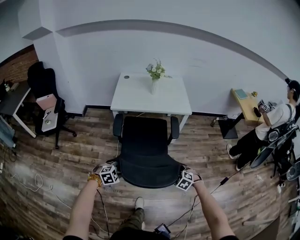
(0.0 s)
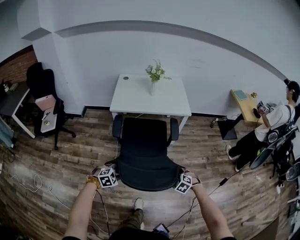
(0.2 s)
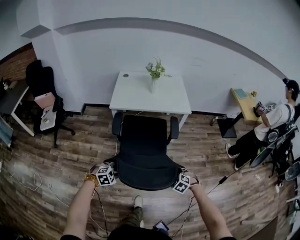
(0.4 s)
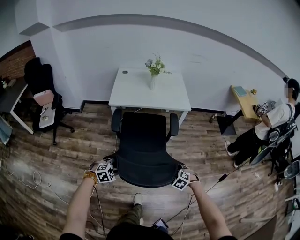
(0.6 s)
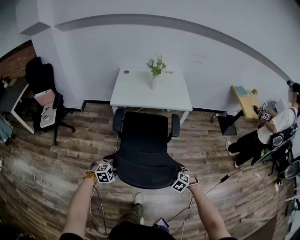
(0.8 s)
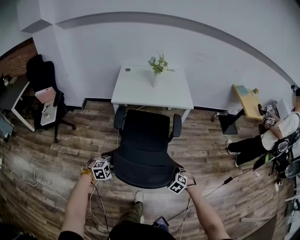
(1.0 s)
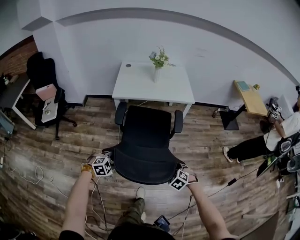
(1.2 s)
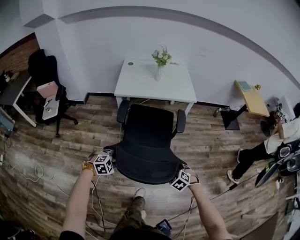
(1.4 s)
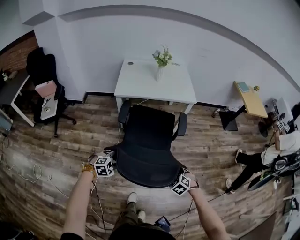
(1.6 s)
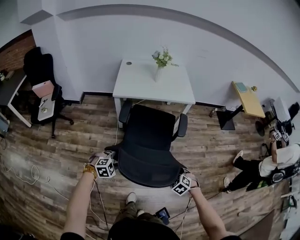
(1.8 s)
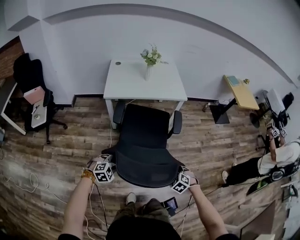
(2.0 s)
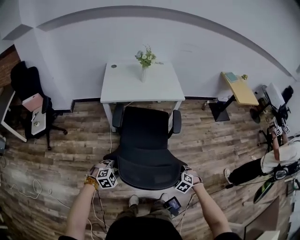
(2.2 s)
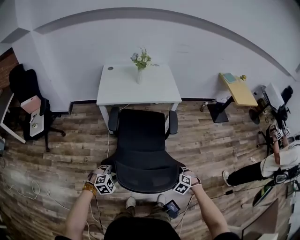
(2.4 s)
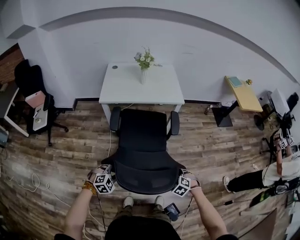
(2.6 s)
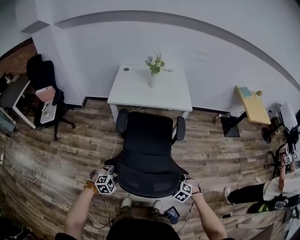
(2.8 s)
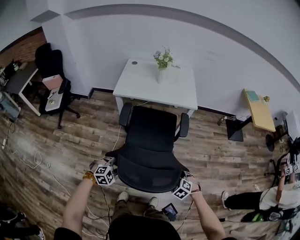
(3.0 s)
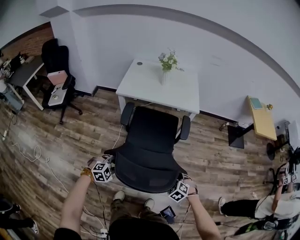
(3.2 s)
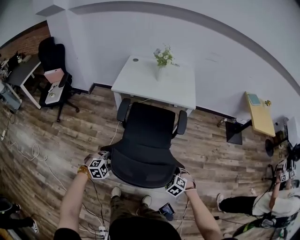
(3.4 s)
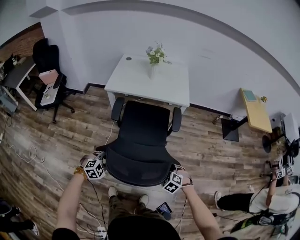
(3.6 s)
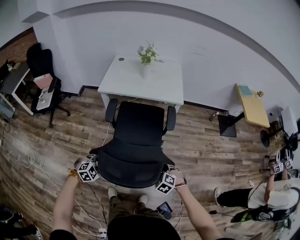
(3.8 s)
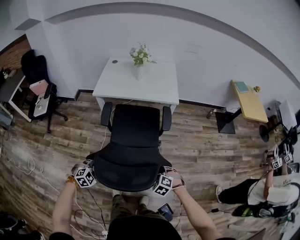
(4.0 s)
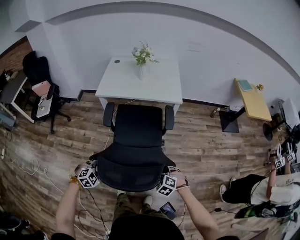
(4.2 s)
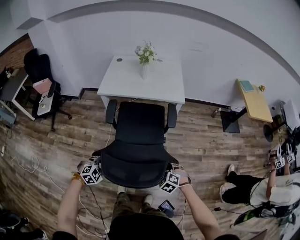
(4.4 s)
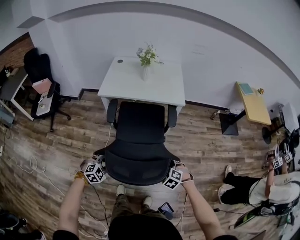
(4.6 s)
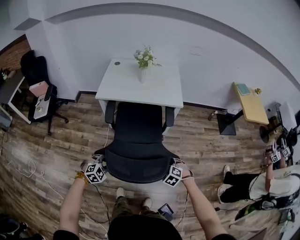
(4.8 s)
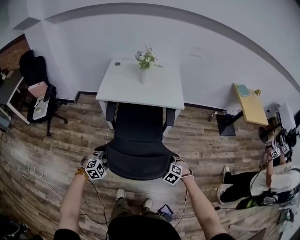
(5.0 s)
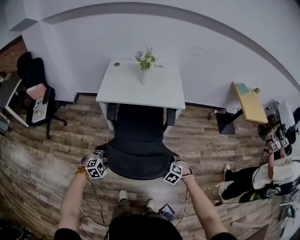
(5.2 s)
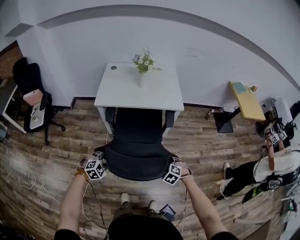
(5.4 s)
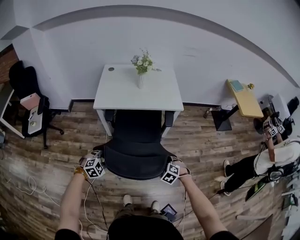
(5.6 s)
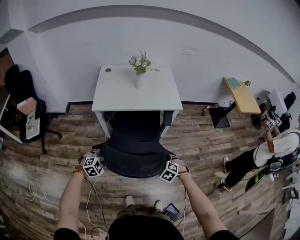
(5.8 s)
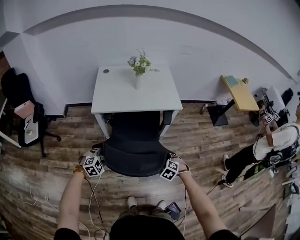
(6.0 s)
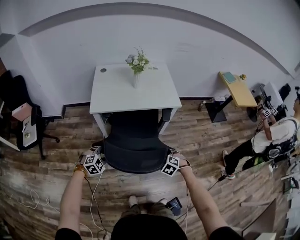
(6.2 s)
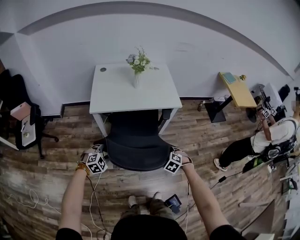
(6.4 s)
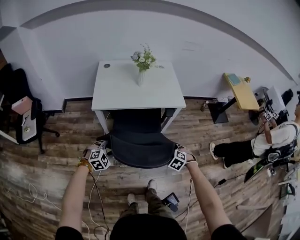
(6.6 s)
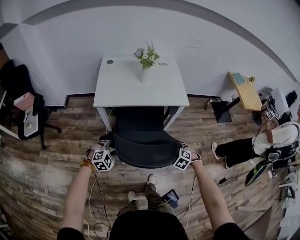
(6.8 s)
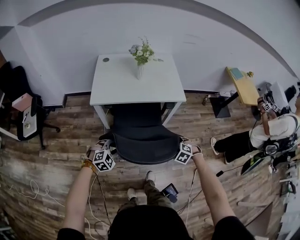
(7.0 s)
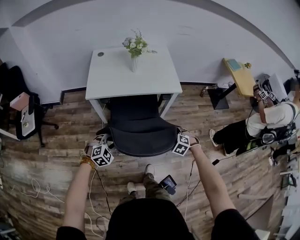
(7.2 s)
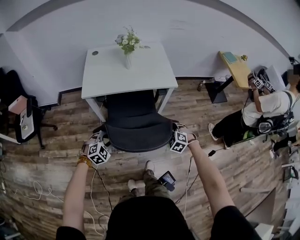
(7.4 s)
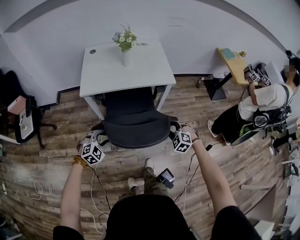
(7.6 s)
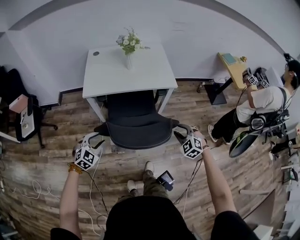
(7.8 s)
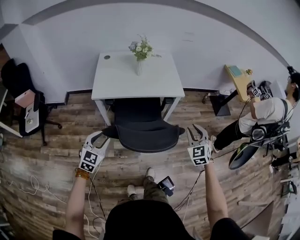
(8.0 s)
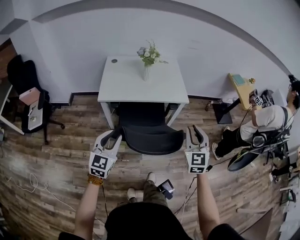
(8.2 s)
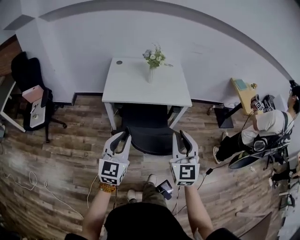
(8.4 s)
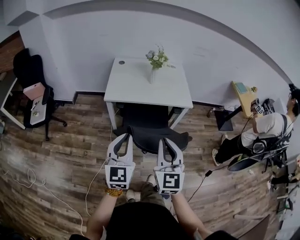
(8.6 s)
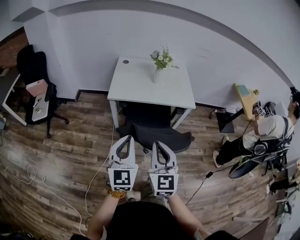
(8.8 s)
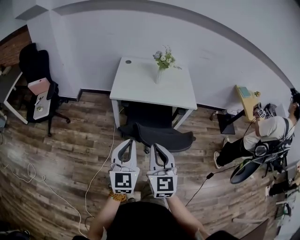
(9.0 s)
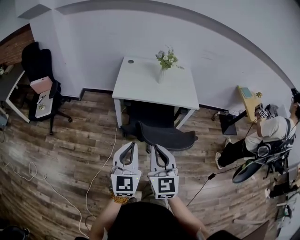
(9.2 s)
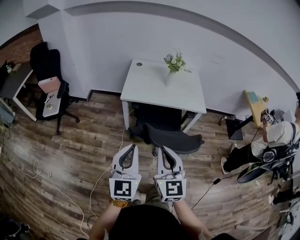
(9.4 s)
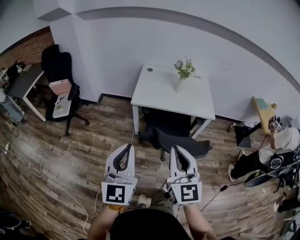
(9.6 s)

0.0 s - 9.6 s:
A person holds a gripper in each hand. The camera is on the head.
0.0 s - 1.6 s: The right gripper travels backward by approximately 10 cm, while the left gripper moves about 5 cm.
1.6 s - 3.2 s: The right gripper travels to the right and forward by approximately 15 cm; the left gripper goes approximately 10 cm to the right.
3.2 s - 4.8 s: Both grippers move forward, about 10 cm.
4.8 s - 6.4 s: The two grippers go about 20 cm to the left and forward.
6.4 s - 8.0 s: The right gripper shifts roughly 20 cm upward and to the right, and tilts its fingers some 40 degrees upward. The left gripper goes approximately 15 cm upward, and turns by some 40 degrees.
8.0 s - 9.6 s: The left gripper goes some 25 cm upward and backward, points its fingers about 30 degrees further upward, and closes up. Meanwhile the right gripper moves to the left, upward and backward, about 35 cm, changes its angle by some 40 degrees, and closes its fingers.

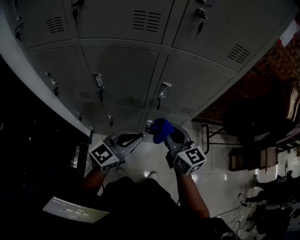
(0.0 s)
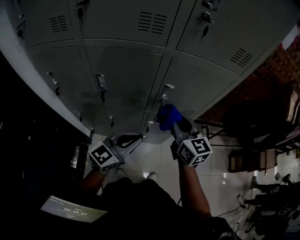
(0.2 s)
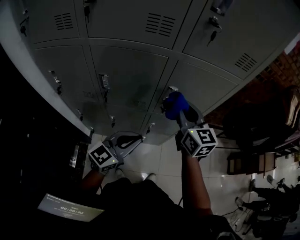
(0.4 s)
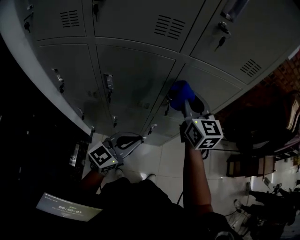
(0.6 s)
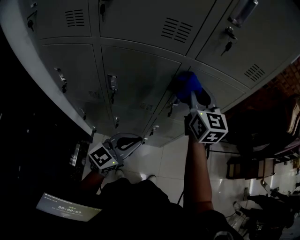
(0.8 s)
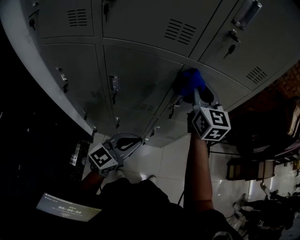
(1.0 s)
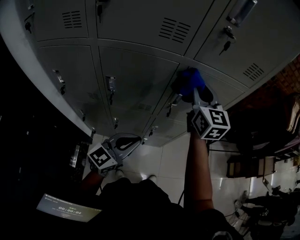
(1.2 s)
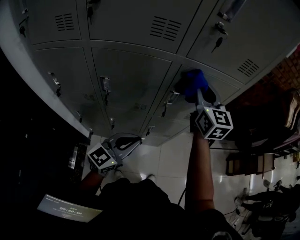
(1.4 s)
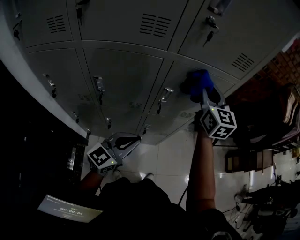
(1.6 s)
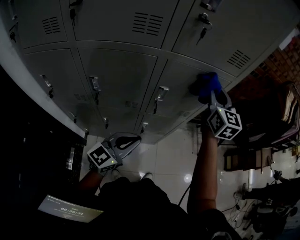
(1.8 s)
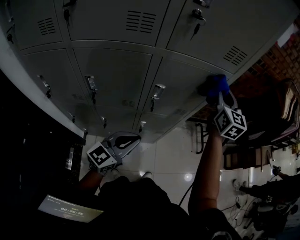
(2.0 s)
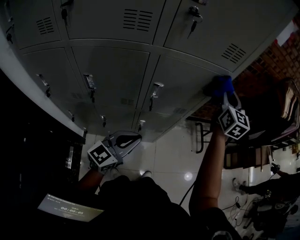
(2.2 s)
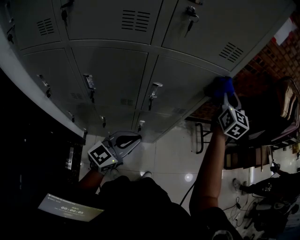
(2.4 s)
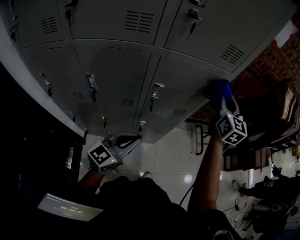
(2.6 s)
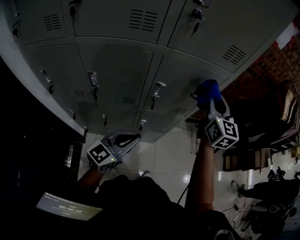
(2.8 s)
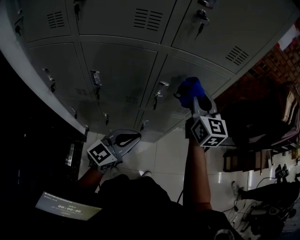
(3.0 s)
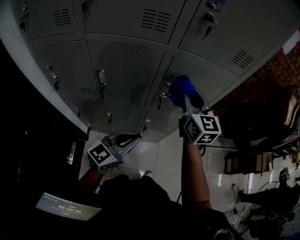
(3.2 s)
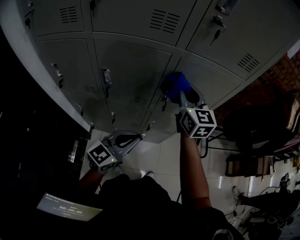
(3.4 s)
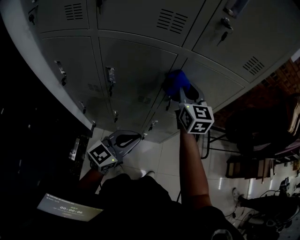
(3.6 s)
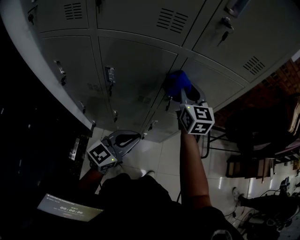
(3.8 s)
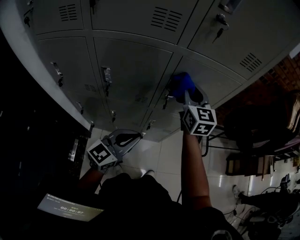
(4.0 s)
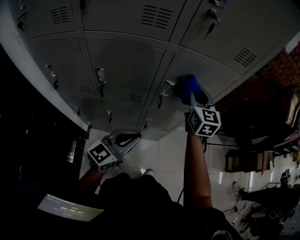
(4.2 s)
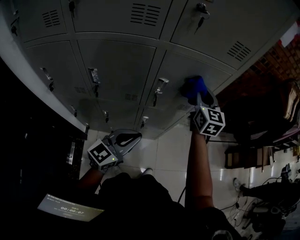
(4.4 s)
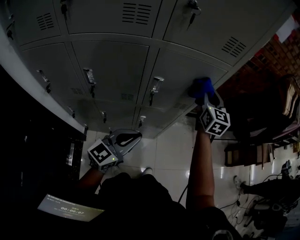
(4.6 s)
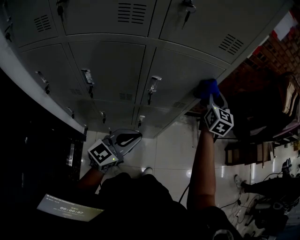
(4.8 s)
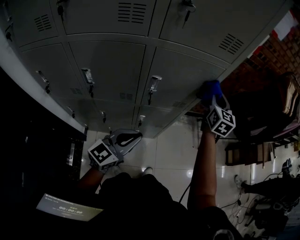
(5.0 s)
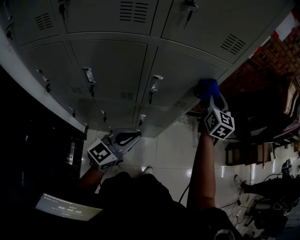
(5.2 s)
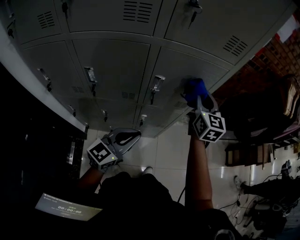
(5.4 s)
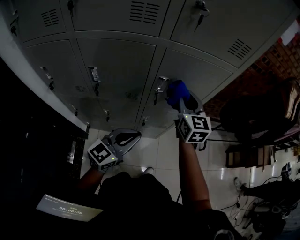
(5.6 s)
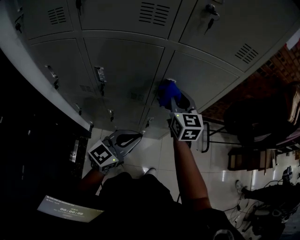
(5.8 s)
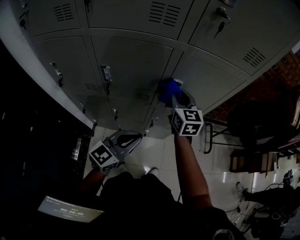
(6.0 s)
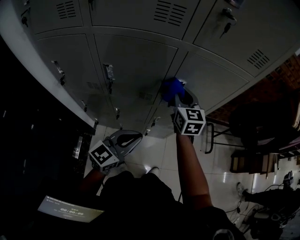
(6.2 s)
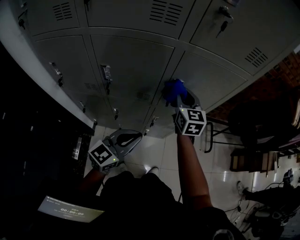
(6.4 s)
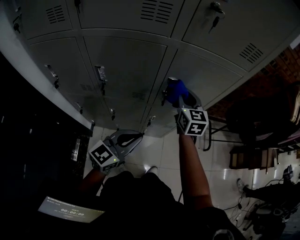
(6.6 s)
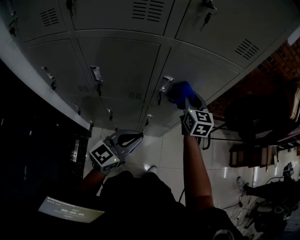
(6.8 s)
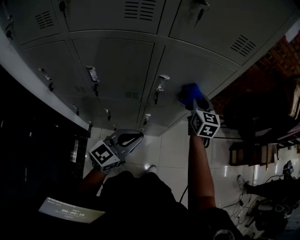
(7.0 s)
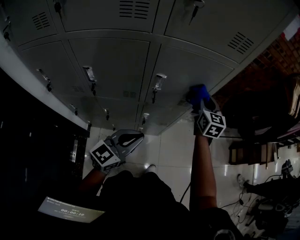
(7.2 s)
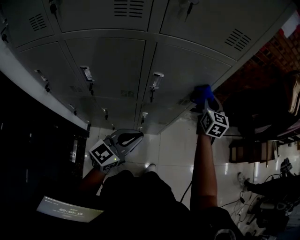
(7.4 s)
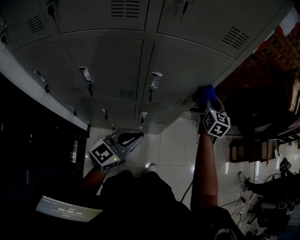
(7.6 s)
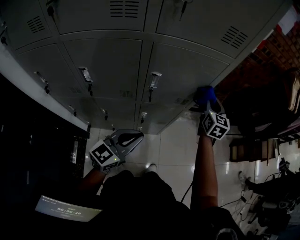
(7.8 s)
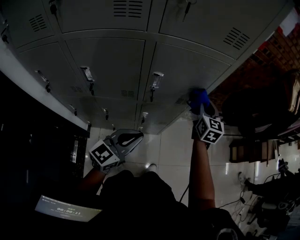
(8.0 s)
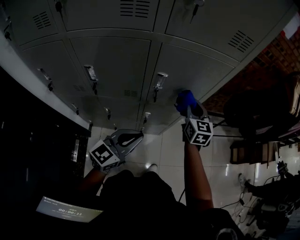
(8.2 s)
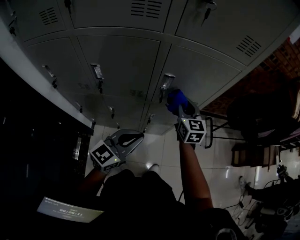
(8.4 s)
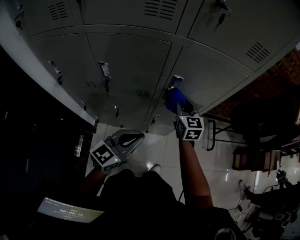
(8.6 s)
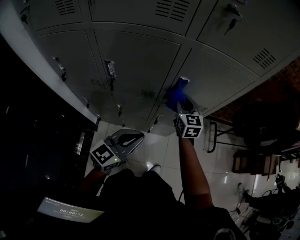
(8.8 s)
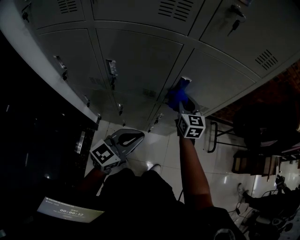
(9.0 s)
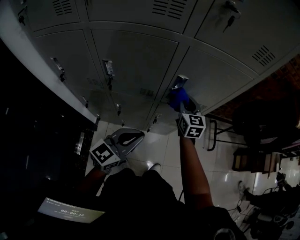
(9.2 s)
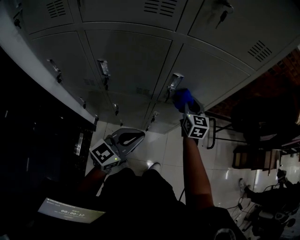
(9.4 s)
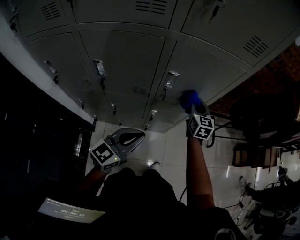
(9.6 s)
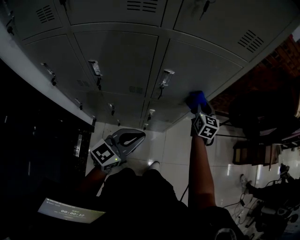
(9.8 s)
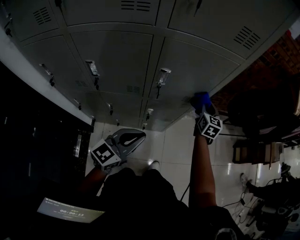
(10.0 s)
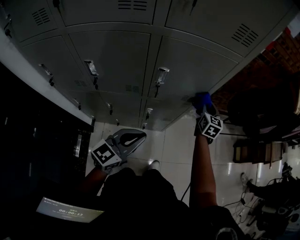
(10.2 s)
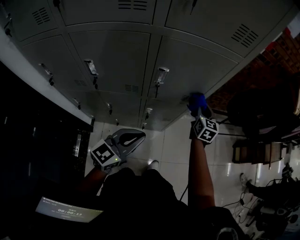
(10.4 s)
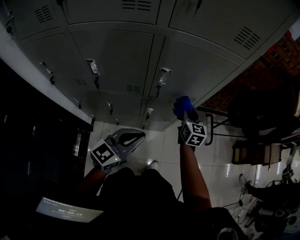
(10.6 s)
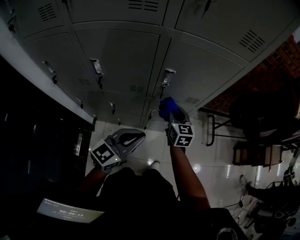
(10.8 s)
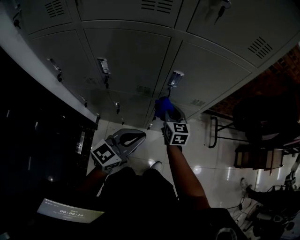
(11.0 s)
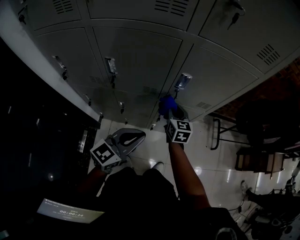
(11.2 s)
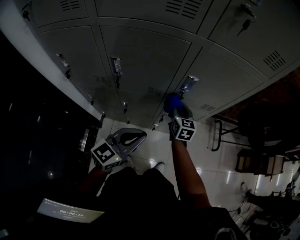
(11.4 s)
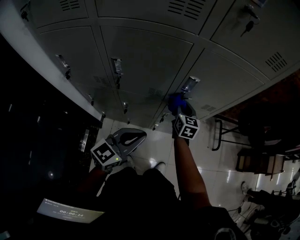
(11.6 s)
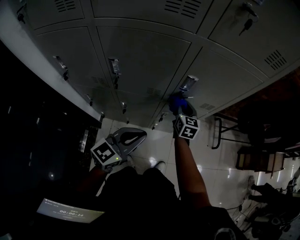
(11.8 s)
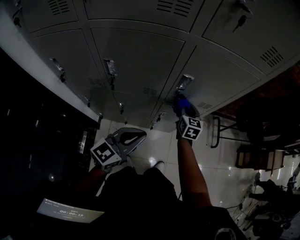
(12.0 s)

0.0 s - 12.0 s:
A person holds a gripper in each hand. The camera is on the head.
0.0 s - 1.6 s: The right gripper travels forward and upward by roughly 20 cm, and changes its angle by about 30 degrees.
1.6 s - 3.0 s: The right gripper travels to the right and back again, about 15 cm each way.
3.0 s - 4.4 s: The right gripper heads downward and forward, covering some 10 cm, and travels to the left and back again, about 10 cm each way.
4.4 s - 6.0 s: The right gripper travels to the left, backward and downward by roughly 15 cm.
6.0 s - 7.6 s: The left gripper goes some 5 cm to the right. The right gripper is displaced to the right by some 25 cm, and rotates roughly 20 degrees.
7.6 s - 9.0 s: The left gripper shifts roughly 5 cm to the left; the right gripper is displaced to the left by approximately 25 cm, and changes its angle by some 20 degrees.
9.0 s - 10.4 s: The right gripper heads to the right, covering roughly 20 cm, and changes its angle by approximately 20 degrees; the left gripper heads to the right, covering about 5 cm.
10.4 s - 12.0 s: The right gripper heads to the left, covering roughly 15 cm. Meanwhile the left gripper shifts roughly 10 cm to the left.

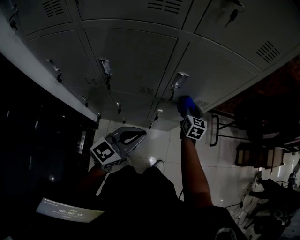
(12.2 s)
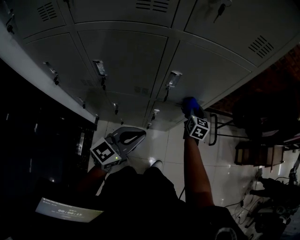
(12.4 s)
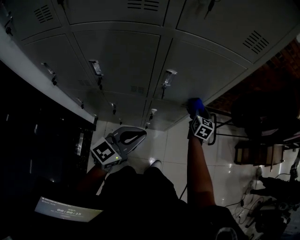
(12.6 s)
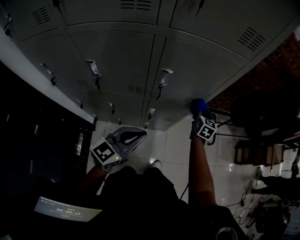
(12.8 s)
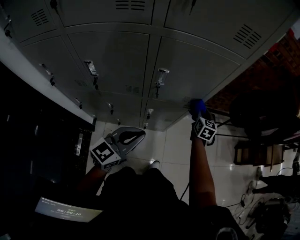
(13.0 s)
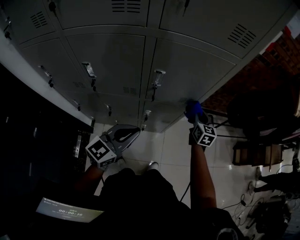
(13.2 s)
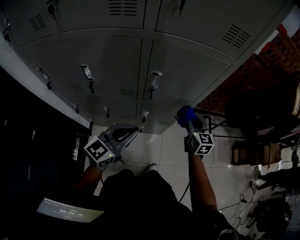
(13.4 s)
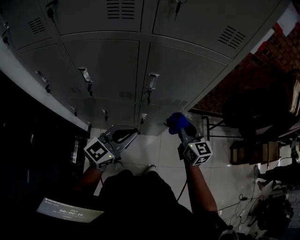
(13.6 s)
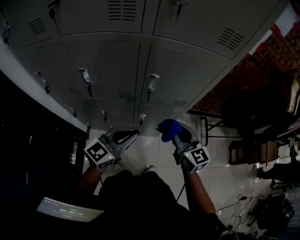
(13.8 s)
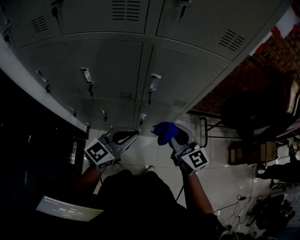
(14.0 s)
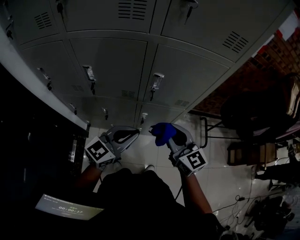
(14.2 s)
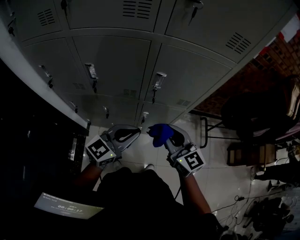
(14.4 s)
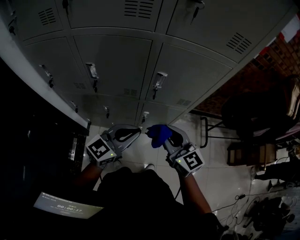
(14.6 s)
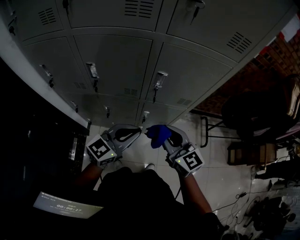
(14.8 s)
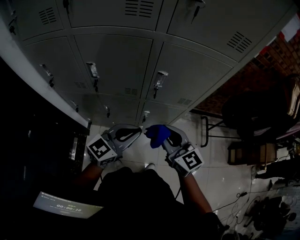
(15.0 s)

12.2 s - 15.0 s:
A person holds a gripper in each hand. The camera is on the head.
12.2 s - 13.6 s: The right gripper is displaced upward, backward and to the right by about 15 cm, and swivels roughly 20 degrees; the left gripper moves approximately 5 cm.
13.6 s - 15.0 s: The right gripper is displaced to the left and backward by about 15 cm.
